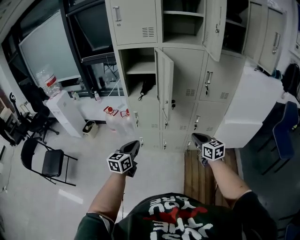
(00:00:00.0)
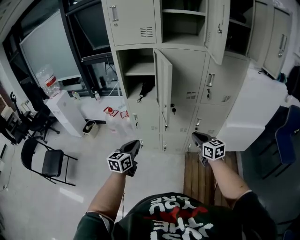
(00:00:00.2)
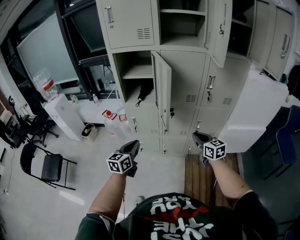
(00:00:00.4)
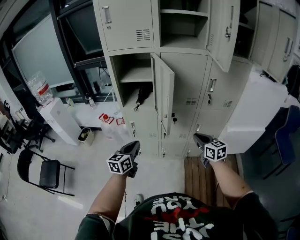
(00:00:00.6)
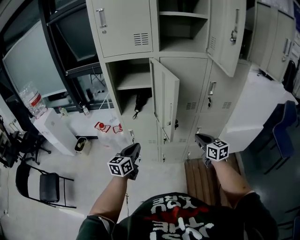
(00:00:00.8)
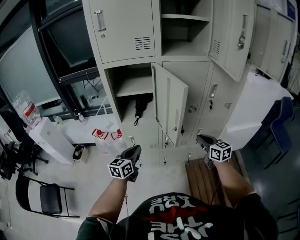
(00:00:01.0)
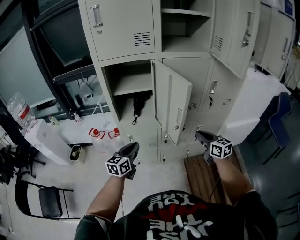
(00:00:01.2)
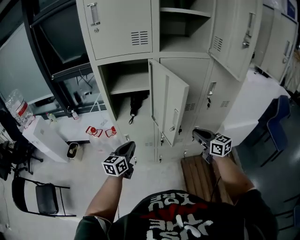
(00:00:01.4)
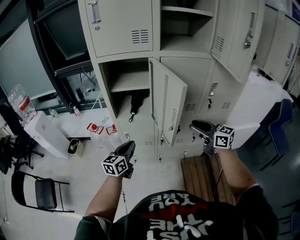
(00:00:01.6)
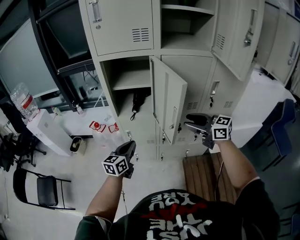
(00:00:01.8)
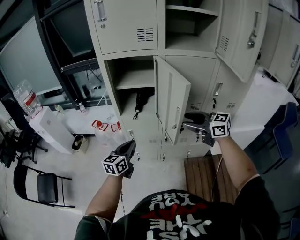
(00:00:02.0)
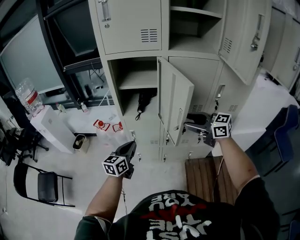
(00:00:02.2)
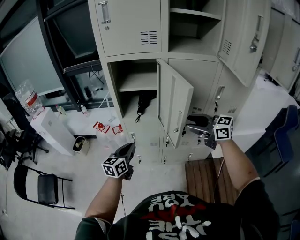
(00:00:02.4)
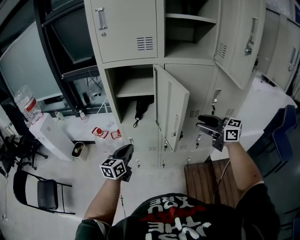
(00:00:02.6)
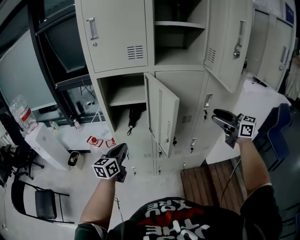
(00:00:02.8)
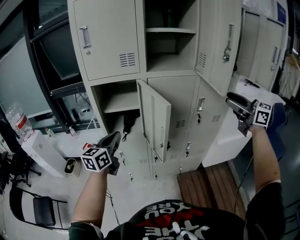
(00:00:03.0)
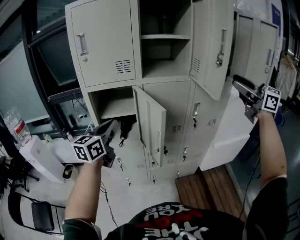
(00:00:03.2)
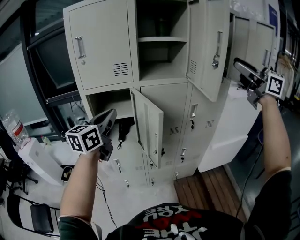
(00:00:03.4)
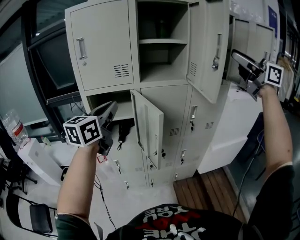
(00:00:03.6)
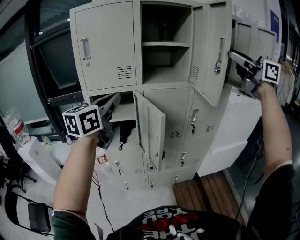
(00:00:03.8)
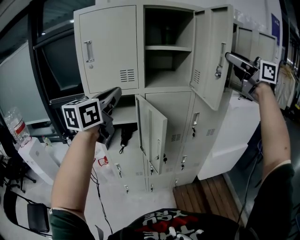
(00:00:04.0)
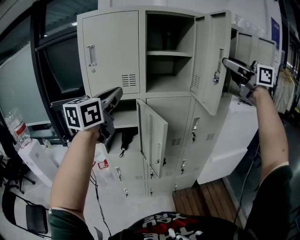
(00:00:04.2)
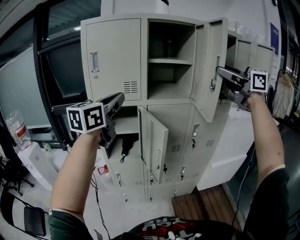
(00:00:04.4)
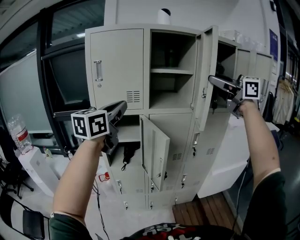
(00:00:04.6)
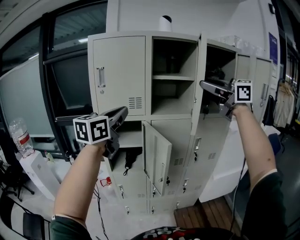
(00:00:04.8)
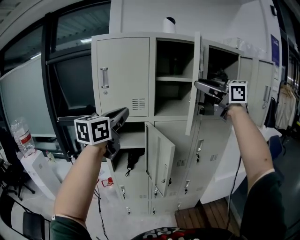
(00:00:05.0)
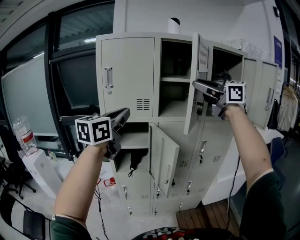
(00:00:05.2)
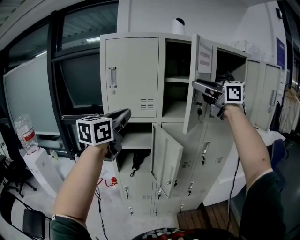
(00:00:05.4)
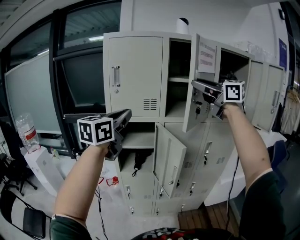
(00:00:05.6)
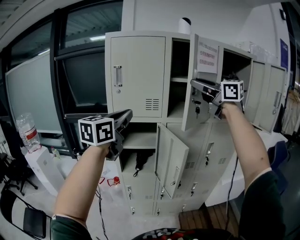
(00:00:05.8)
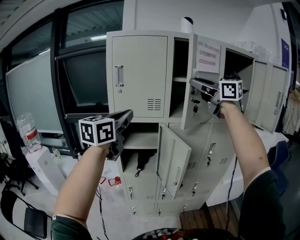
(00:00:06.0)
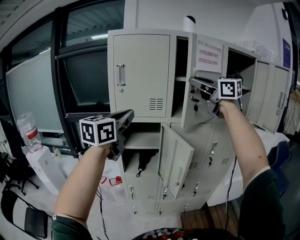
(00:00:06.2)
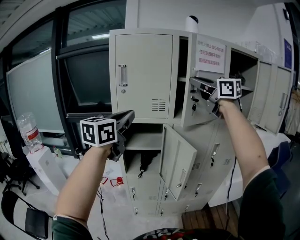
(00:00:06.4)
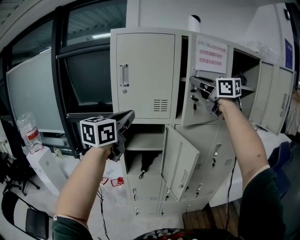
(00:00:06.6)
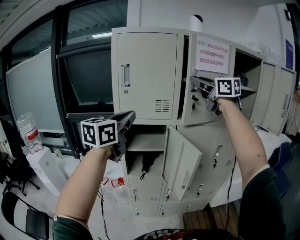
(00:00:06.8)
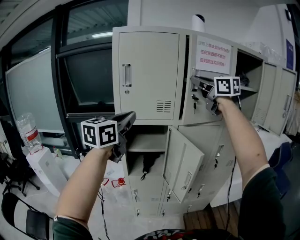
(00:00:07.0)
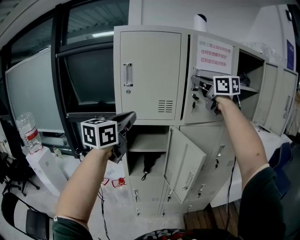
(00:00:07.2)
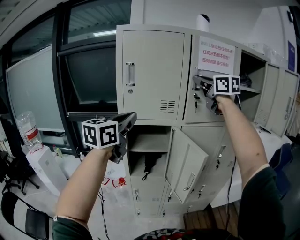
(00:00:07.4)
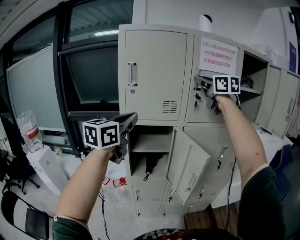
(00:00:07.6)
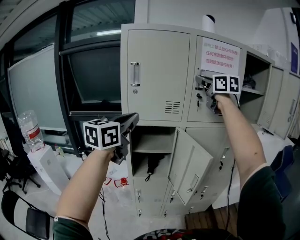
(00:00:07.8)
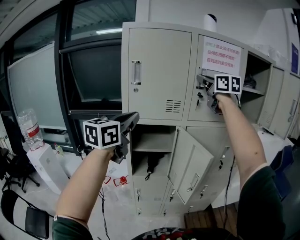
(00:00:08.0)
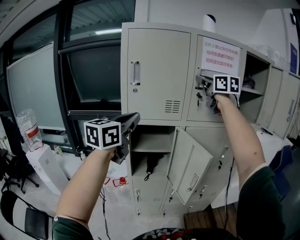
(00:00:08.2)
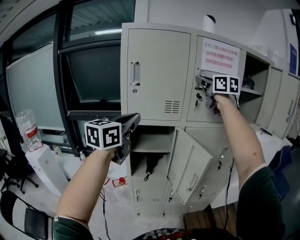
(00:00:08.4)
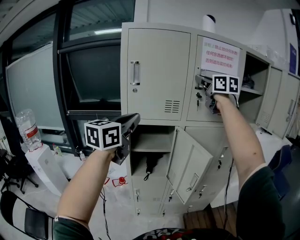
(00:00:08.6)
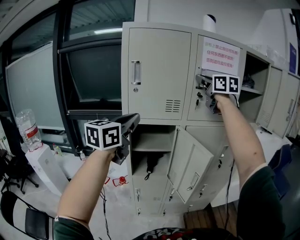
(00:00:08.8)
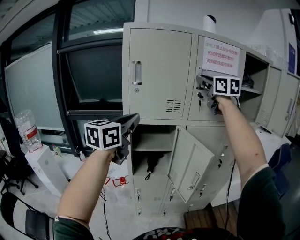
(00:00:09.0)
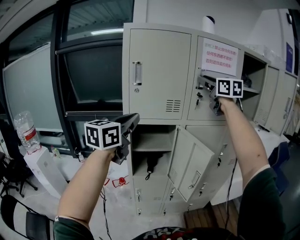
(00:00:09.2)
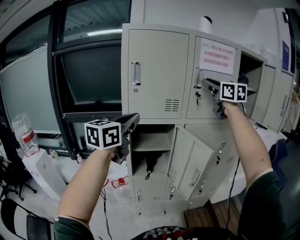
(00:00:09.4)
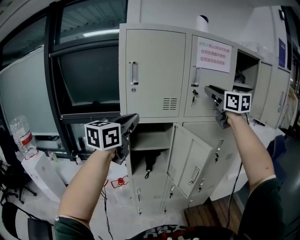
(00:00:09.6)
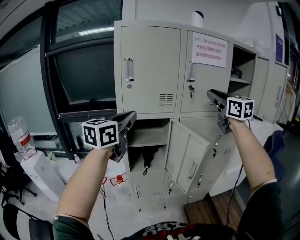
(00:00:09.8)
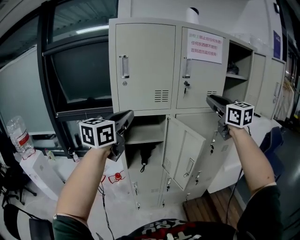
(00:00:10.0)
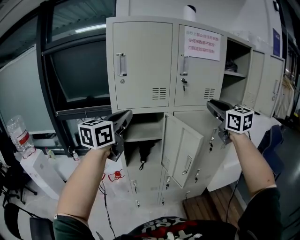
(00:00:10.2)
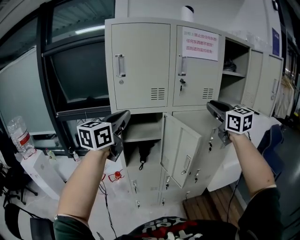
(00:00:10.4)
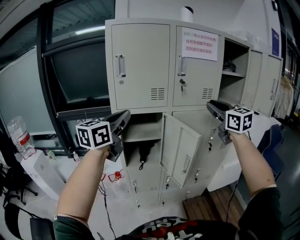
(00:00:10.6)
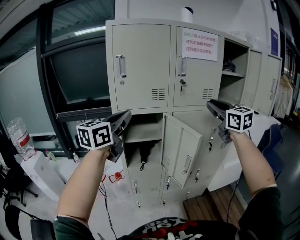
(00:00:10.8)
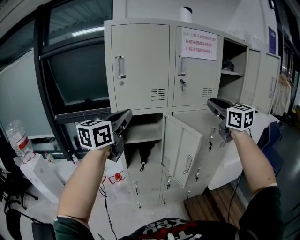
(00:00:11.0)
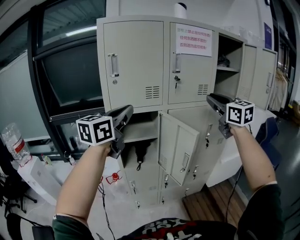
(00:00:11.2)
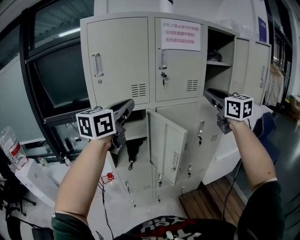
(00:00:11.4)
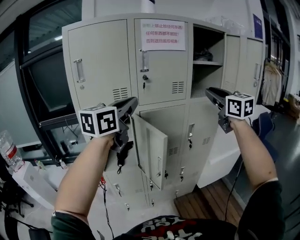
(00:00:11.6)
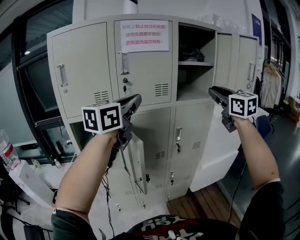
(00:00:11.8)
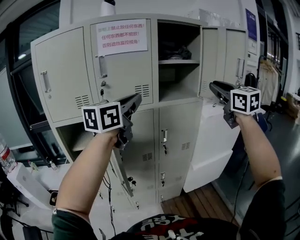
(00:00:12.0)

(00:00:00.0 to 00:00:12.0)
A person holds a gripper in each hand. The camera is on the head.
00:00:00.0 - 00:00:01.6: The right gripper travels forward and upward by about 20 cm, and opens up; the left gripper is displaced forward by about 25 cm.
00:00:01.6 - 00:00:03.0: The right gripper shifts roughly 30 cm upward and to the right. Meanwhile the left gripper goes about 20 cm upward.
00:00:03.0 - 00:00:04.4: The two grippers go about 25 cm upward.
00:00:04.4 - 00:00:06.0: The left gripper moves to the left, roughly 5 cm. The right gripper heads to the left and forward, covering about 20 cm, and closes up.
00:00:06.0 - 00:00:07.6: The right gripper moves forward, approximately 10 cm, while the left gripper moves forward and to the left, about 5 cm.
00:00:07.6 - 00:00:09.0: The grippers move only a little.
00:00:09.0 - 00:00:10.4: The right gripper moves backward, downward and to the right, roughly 25 cm.
00:00:10.4 - 00:00:12.0: The two grippers go some 35 cm to the right.

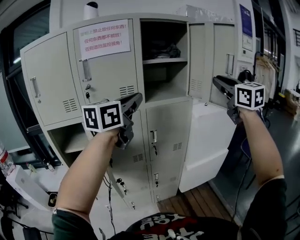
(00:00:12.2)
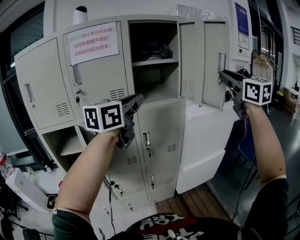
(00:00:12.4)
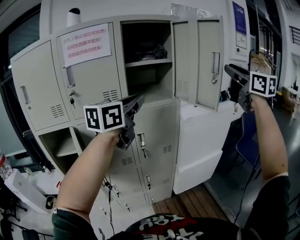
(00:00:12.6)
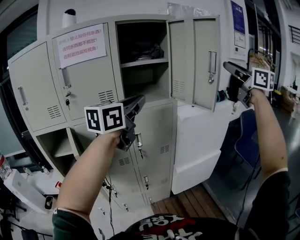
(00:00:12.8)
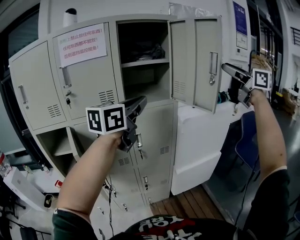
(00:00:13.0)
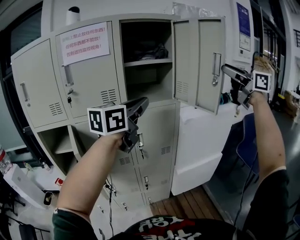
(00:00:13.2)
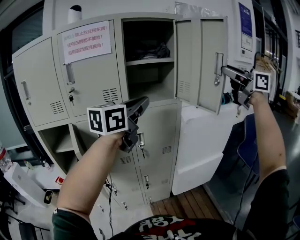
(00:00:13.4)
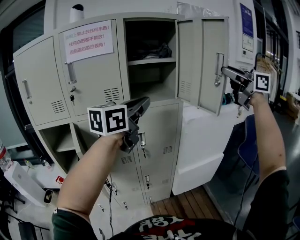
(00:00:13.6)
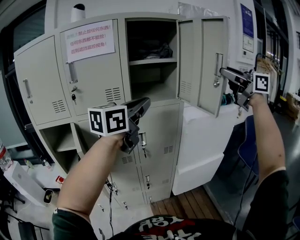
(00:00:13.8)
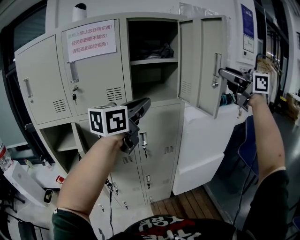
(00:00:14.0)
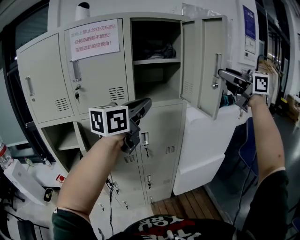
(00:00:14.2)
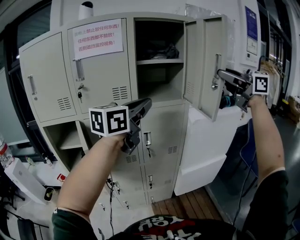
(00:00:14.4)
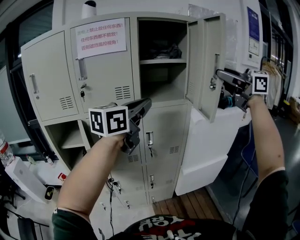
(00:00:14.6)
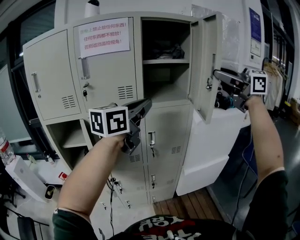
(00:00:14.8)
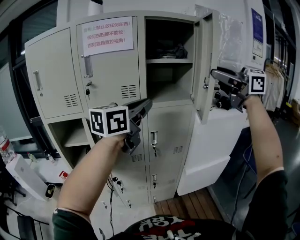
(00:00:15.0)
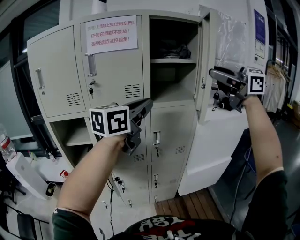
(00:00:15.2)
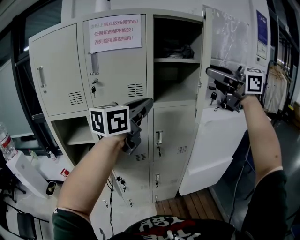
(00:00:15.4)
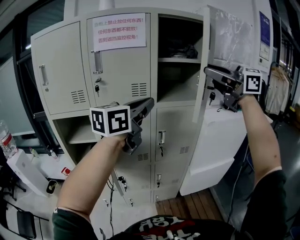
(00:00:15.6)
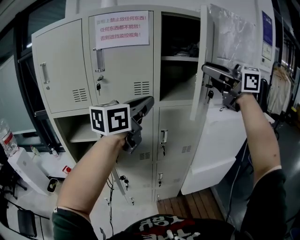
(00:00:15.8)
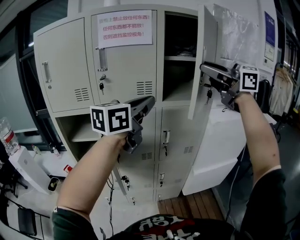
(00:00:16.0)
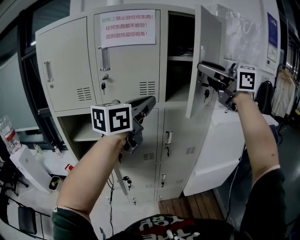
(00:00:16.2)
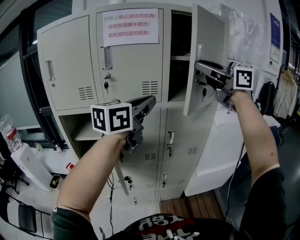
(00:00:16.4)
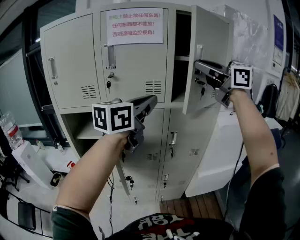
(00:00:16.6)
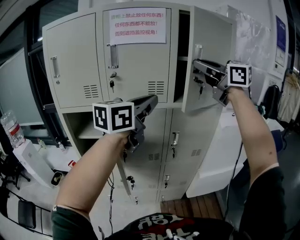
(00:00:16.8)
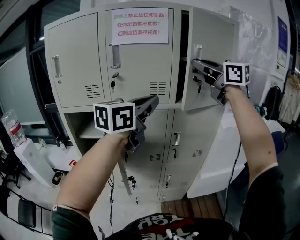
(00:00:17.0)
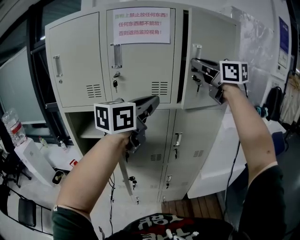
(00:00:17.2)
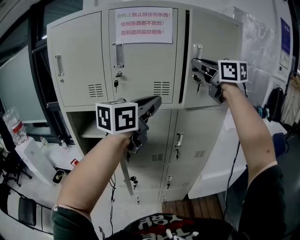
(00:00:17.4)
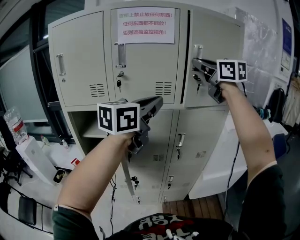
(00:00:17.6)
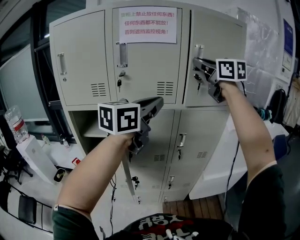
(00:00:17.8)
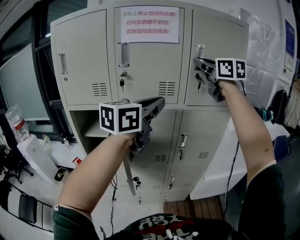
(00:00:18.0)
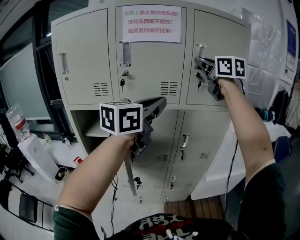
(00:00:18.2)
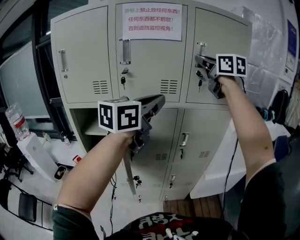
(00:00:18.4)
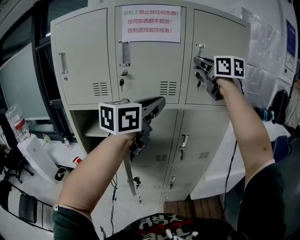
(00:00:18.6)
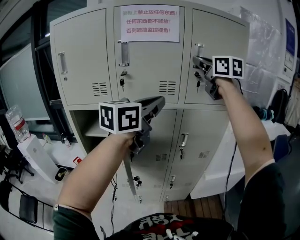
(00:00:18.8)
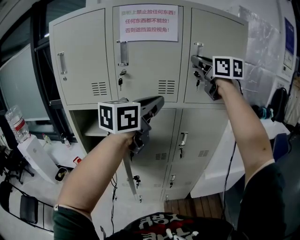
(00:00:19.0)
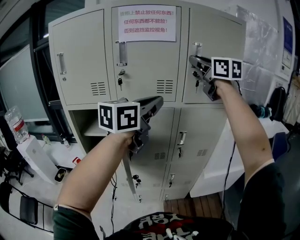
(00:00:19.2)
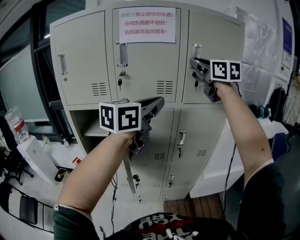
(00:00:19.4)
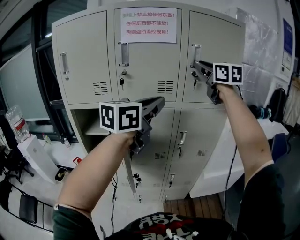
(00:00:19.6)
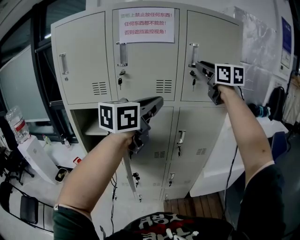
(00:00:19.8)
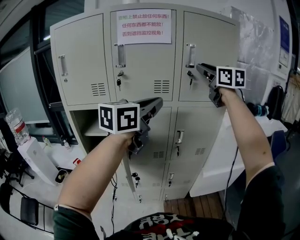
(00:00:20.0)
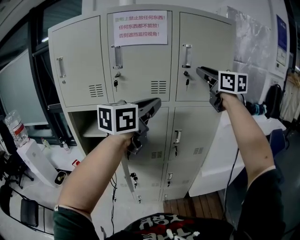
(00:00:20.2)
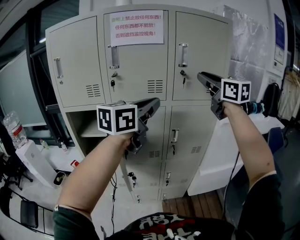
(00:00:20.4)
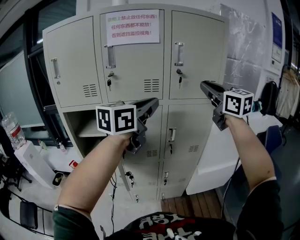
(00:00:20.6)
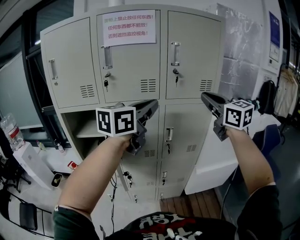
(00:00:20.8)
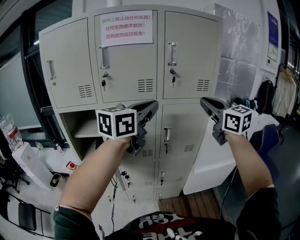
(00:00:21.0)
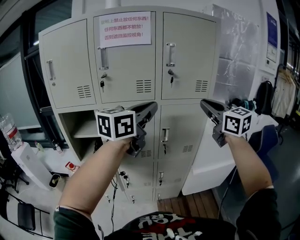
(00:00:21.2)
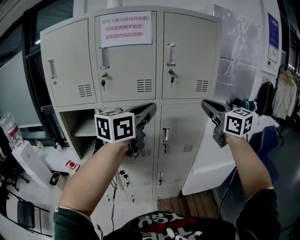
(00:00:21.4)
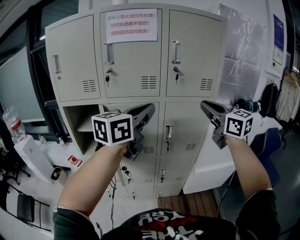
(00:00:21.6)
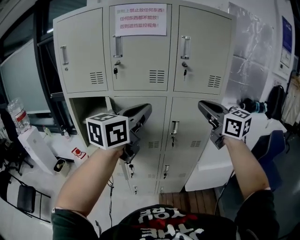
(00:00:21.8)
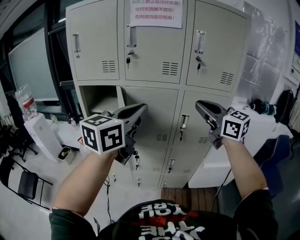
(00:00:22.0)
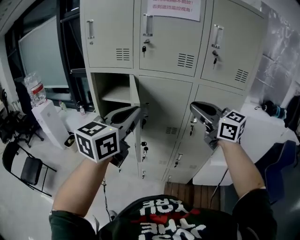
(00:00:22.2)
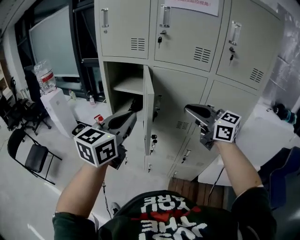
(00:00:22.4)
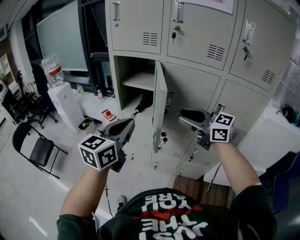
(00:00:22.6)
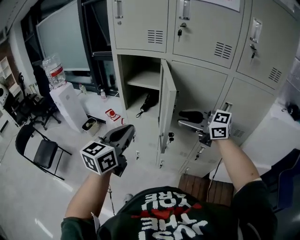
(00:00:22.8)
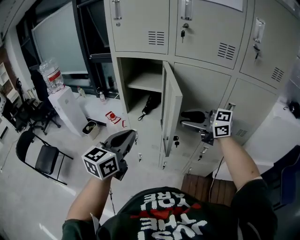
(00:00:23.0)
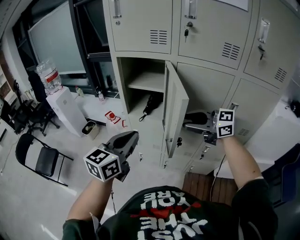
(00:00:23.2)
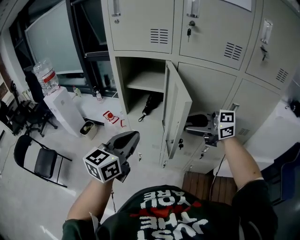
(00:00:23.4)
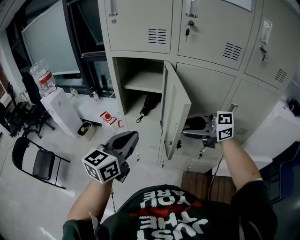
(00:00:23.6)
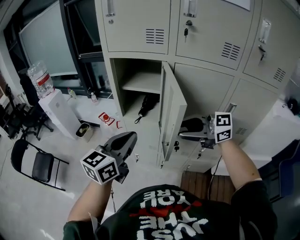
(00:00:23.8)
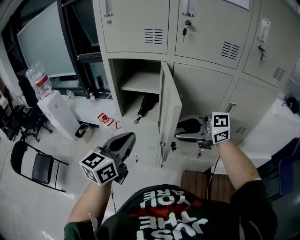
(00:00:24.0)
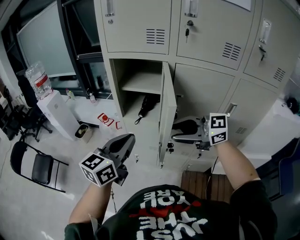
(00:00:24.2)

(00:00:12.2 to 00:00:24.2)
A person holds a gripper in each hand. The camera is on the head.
00:00:12.2 - 00:00:13.8: Both grippers travel together to the right, approximately 10 cm. The right gripper turns by roughly 30 degrees, and opens its fingers.
00:00:13.8 - 00:00:15.2: The left gripper moves to the left, some 5 cm; the right gripper travels to the left by approximately 15 cm.
00:00:15.2 - 00:00:16.6: The left gripper travels to the left by approximately 5 cm. Meanwhile the right gripper goes about 15 cm to the left and forward.
00:00:16.6 - 00:00:18.2: The right gripper shifts roughly 10 cm forward, and turns by roughly 20 degrees.
00:00:18.2 - 00:00:19.8: There are only small adjustments of the grippers.
00:00:19.8 - 00:00:21.2: The left gripper is displaced to the right by roughly 5 cm; the right gripper travels backward, downward and to the right by about 20 cm.
00:00:21.2 - 00:00:22.6: The right gripper changes place by approximately 35 cm, changes its angle by approximately 50 degrees, and opens its fingers. Meanwhile the left gripper ends up approximately 35 cm from where it was, and rotates approximately 40 degrees.
00:00:22.6 - 00:00:24.2: The right gripper heads to the left, covering roughly 10 cm, while the left gripper travels forward by some 10 cm.
